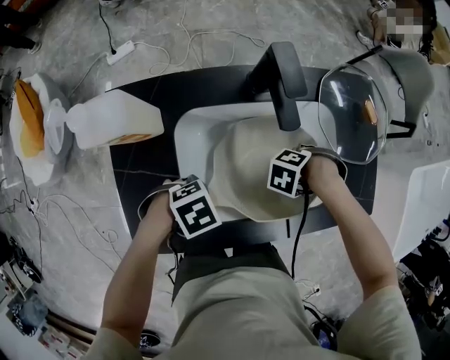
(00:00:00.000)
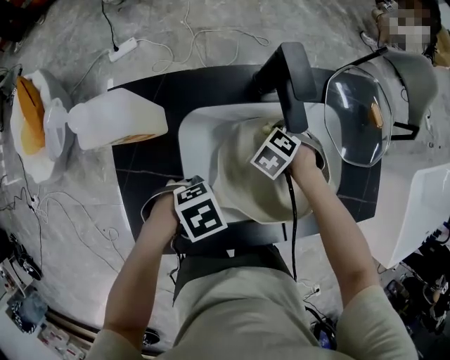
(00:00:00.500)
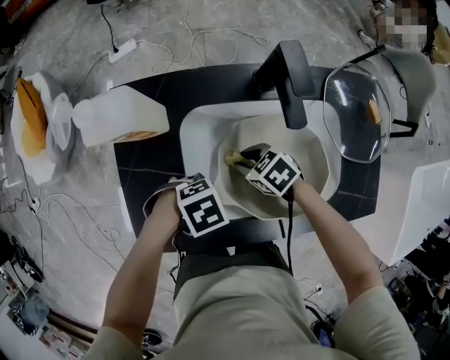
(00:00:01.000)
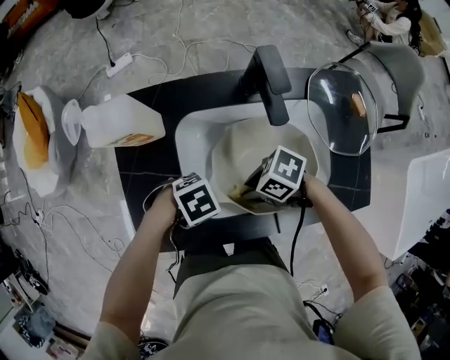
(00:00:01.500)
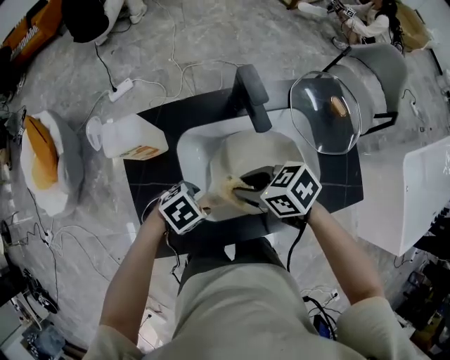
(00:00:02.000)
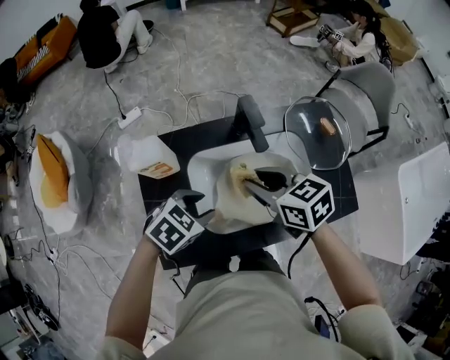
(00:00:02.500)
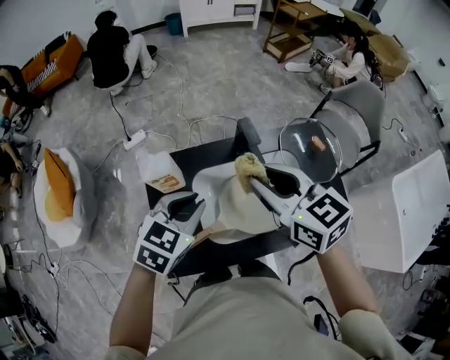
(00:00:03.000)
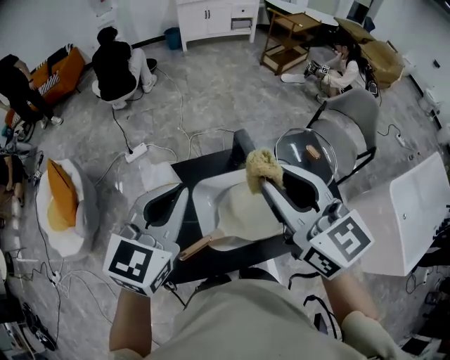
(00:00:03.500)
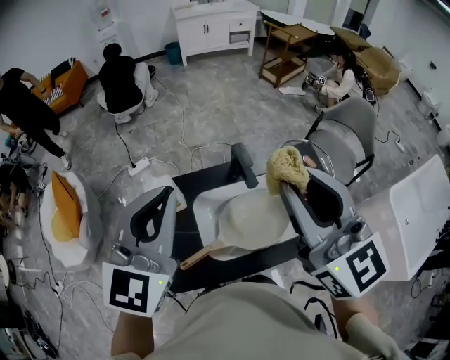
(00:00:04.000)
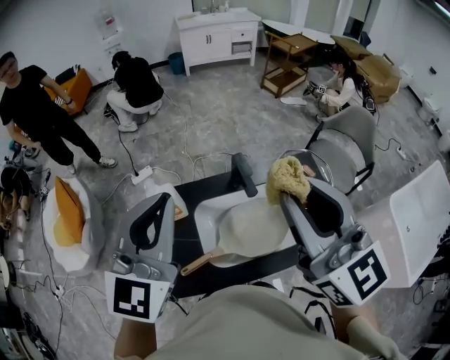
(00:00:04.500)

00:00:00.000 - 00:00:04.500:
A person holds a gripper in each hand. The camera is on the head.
00:00:00.000 - 00:00:02.000: The right gripper changes place by approximately 25 cm, and turns by about 80 degrees.
00:00:02.000 - 00:00:04.500: Both grippers move upward, some 50 cm. The left gripper tips its fingers upward by approximately 60 degrees, and closes its fingers. Meanwhile the right gripper points its fingers roughly 50 degrees further upward.

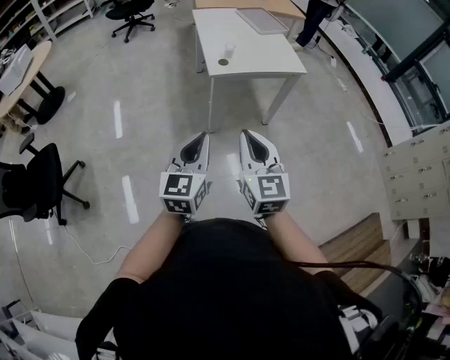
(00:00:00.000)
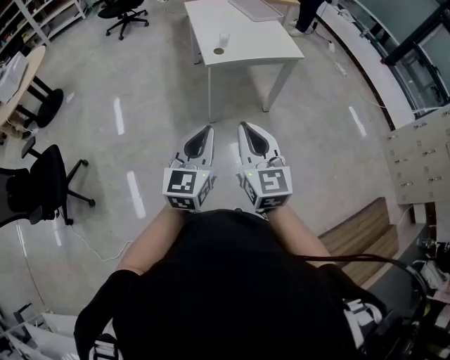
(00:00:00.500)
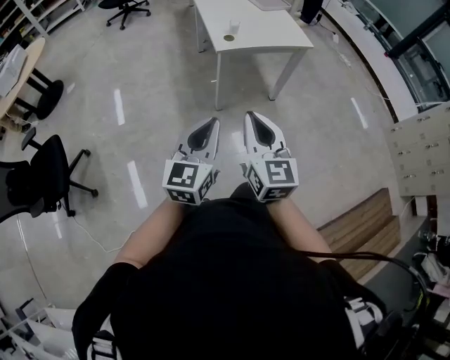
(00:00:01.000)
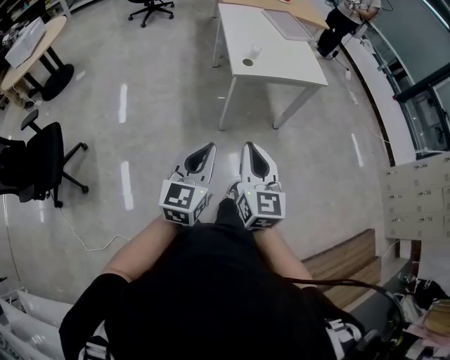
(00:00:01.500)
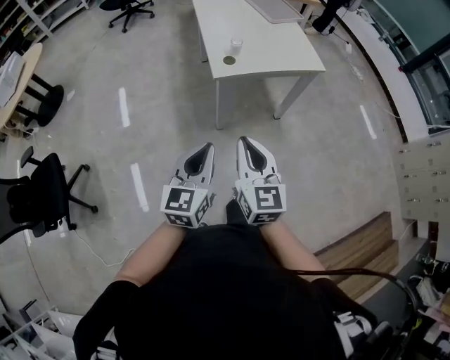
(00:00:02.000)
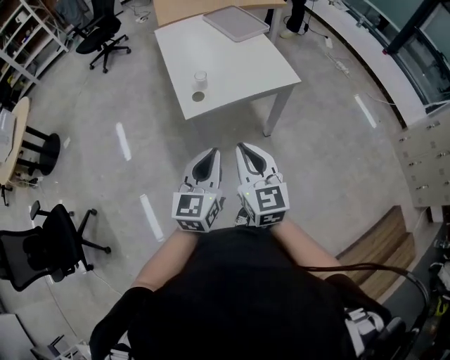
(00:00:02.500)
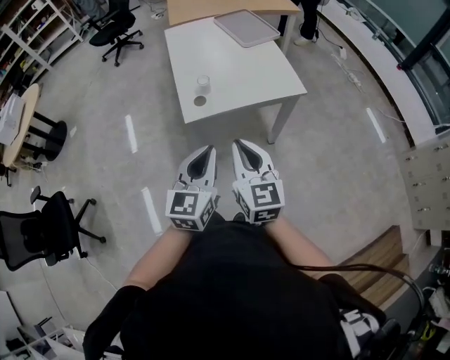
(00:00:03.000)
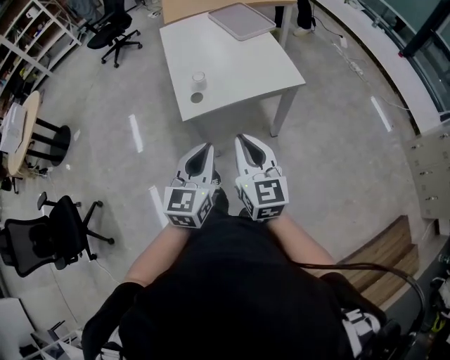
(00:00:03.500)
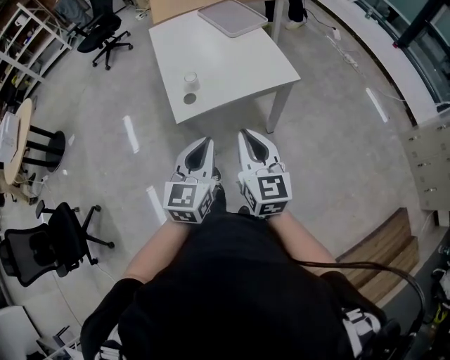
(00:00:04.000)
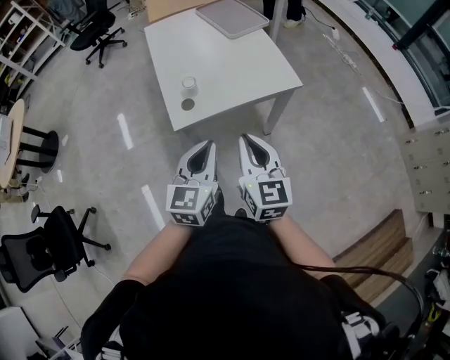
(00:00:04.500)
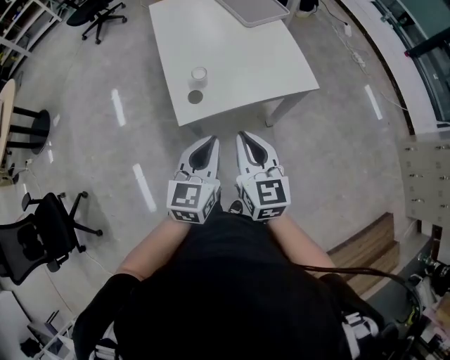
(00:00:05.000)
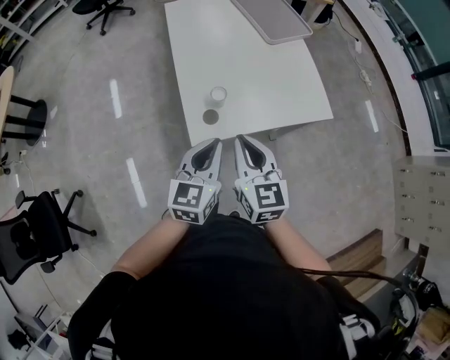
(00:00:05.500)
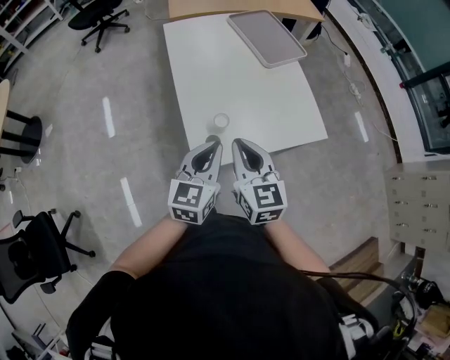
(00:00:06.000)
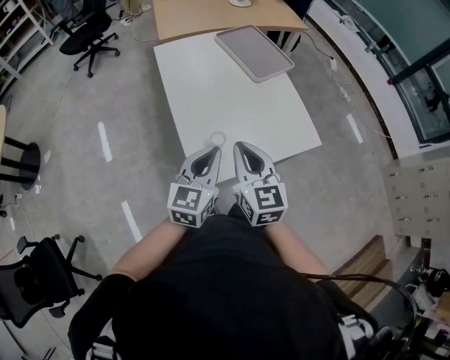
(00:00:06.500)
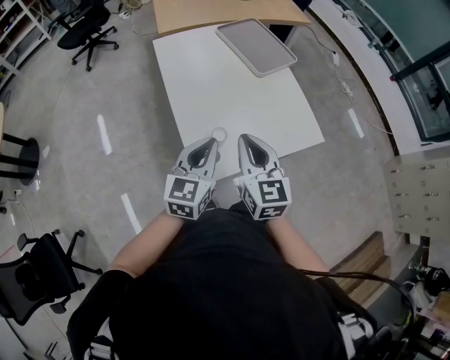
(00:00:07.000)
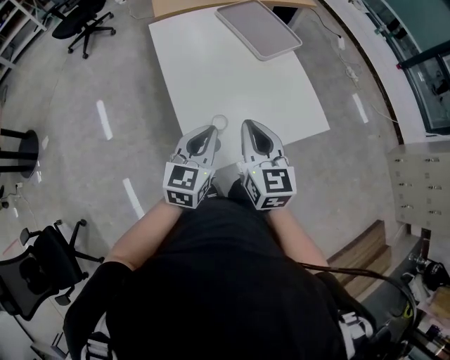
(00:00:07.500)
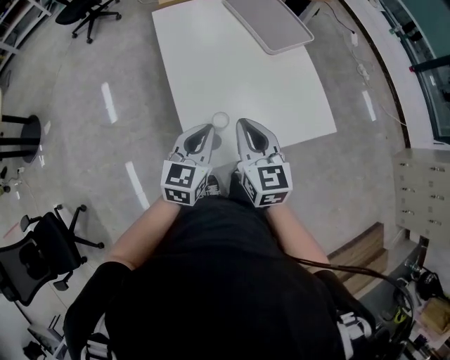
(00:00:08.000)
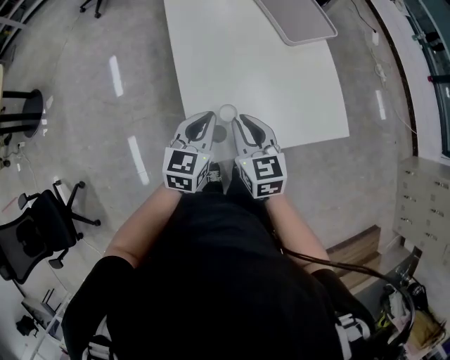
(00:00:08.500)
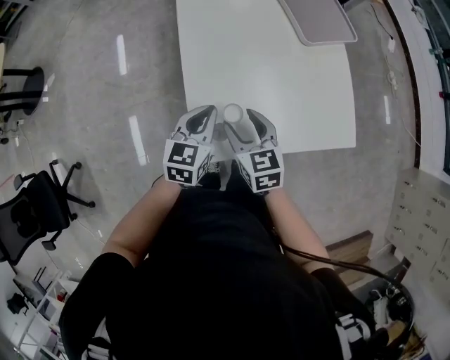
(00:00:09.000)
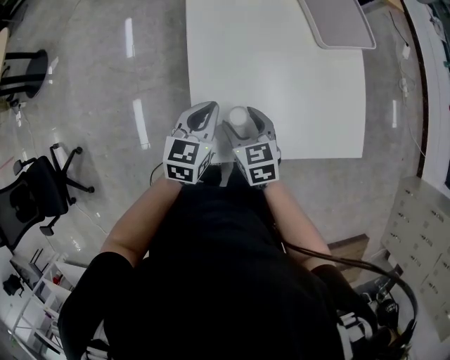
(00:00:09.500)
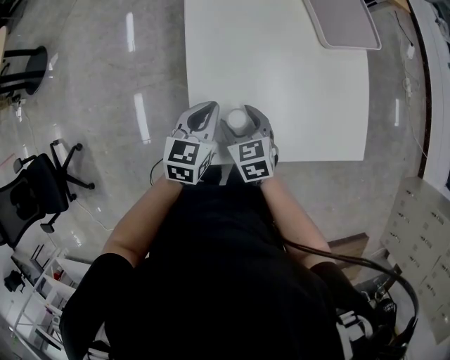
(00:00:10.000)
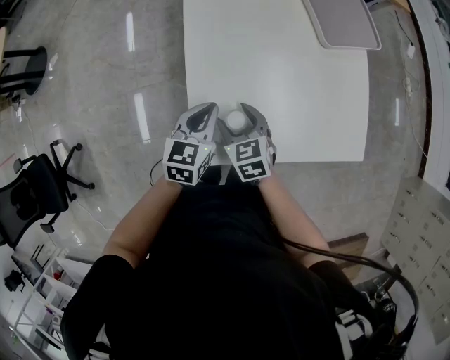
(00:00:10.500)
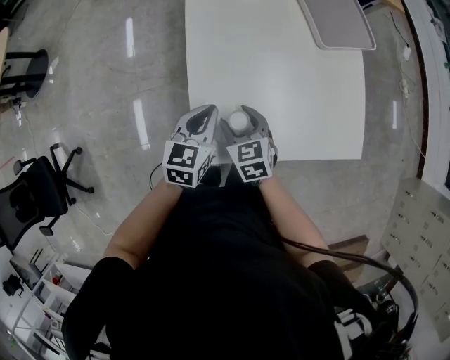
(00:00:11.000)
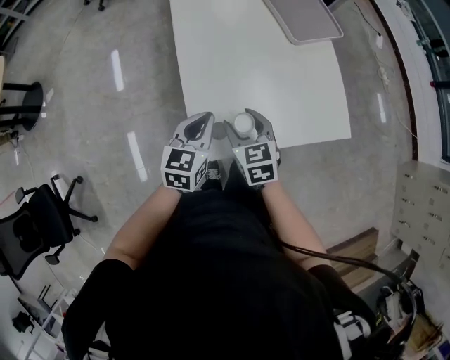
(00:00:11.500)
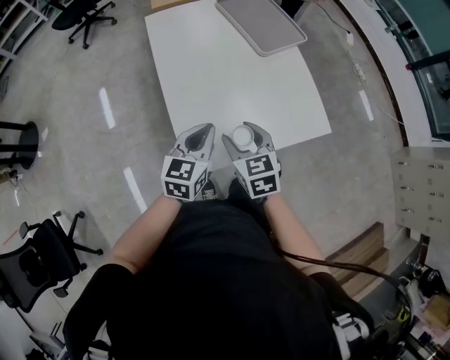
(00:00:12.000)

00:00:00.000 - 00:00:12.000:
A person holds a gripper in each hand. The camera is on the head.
00:00:00.000 - 00:00:02.000: Both grippers travel together forward, about 15 cm.
00:00:02.000 - 00:00:04.000: The grippers both shift forward and to the right by about 30 cm.
00:00:04.000 - 00:00:06.000: The grippers both shift forward and to the left by about 30 cm.
00:00:06.000 - 00:00:08.000: Both grippers travel together forward, some 10 cm.
00:00:08.000 - 00:00:10.000: The left gripper is displaced downward and forward by roughly 15 cm; the right gripper heads downward, covering approximately 25 cm, changes its angle by roughly 40 degrees, and opens.
00:00:10.000 - 00:00:12.000: The two grippers go about 15 cm upward and backward.

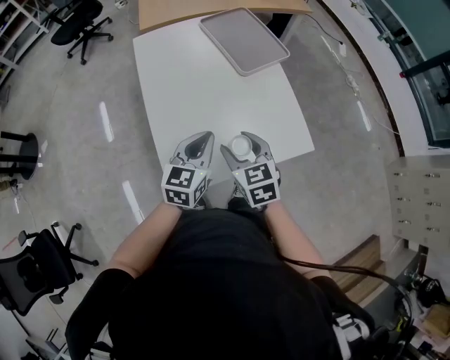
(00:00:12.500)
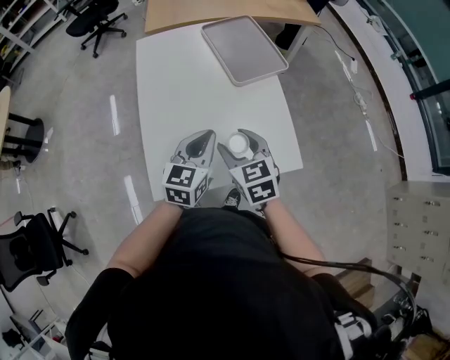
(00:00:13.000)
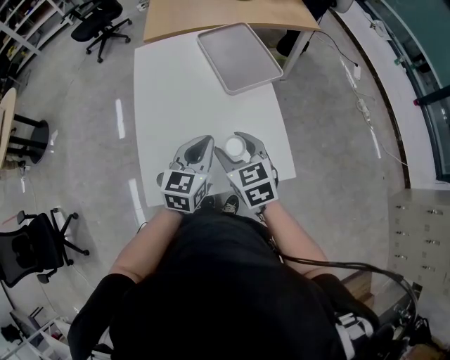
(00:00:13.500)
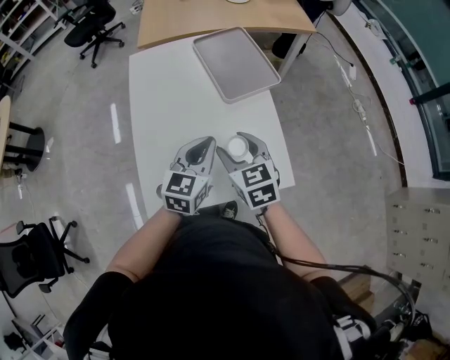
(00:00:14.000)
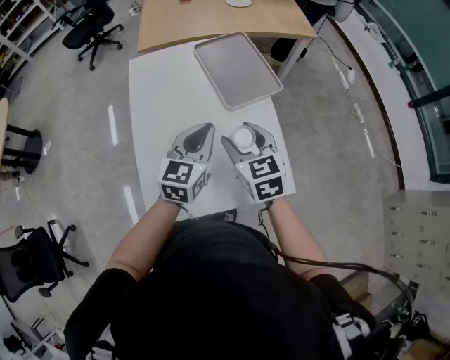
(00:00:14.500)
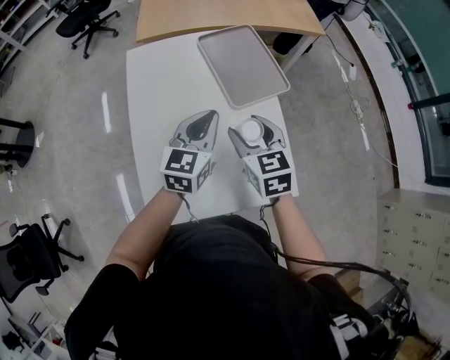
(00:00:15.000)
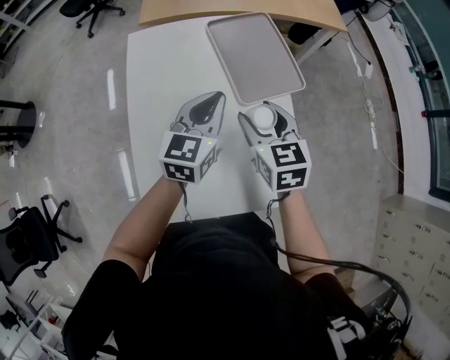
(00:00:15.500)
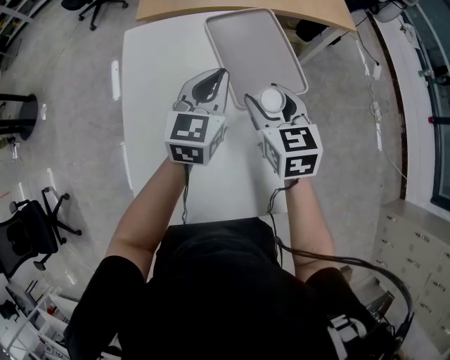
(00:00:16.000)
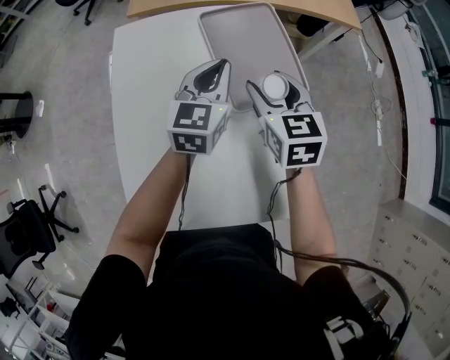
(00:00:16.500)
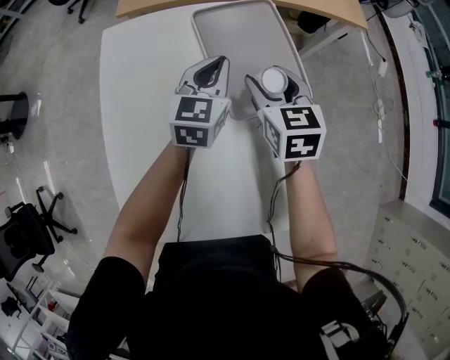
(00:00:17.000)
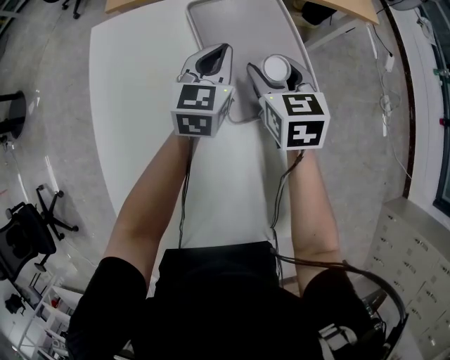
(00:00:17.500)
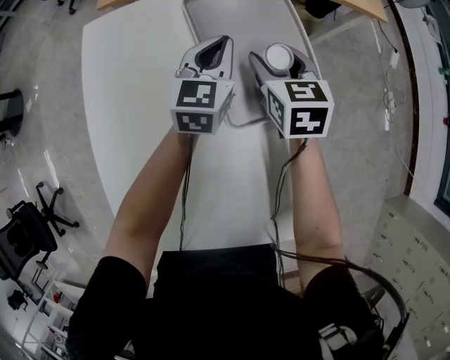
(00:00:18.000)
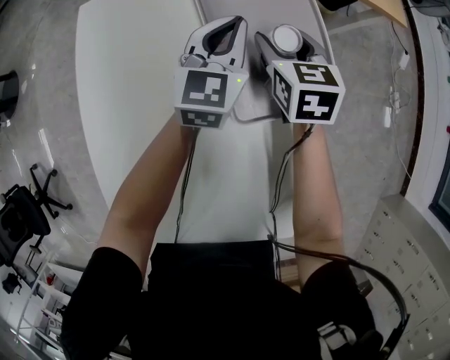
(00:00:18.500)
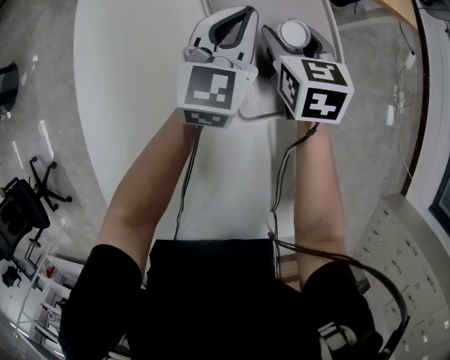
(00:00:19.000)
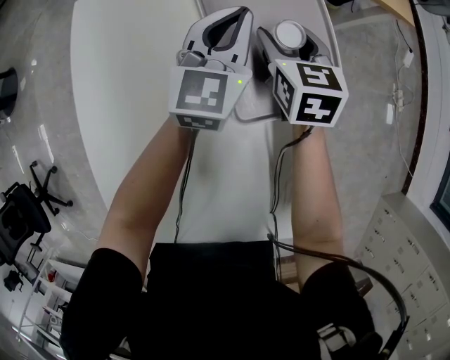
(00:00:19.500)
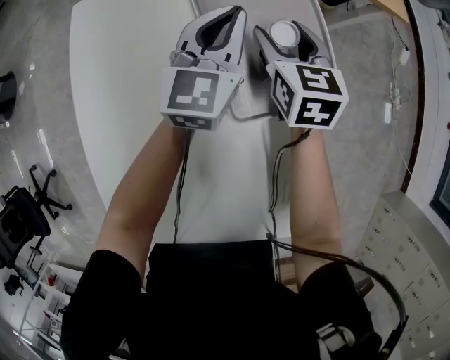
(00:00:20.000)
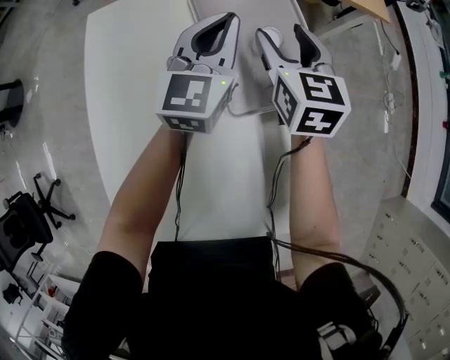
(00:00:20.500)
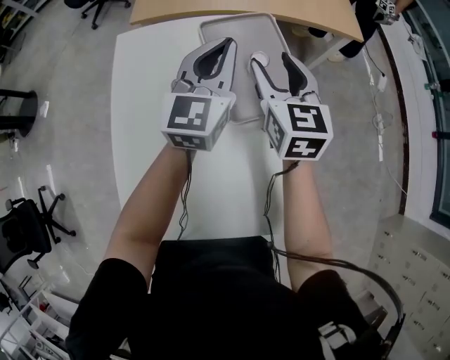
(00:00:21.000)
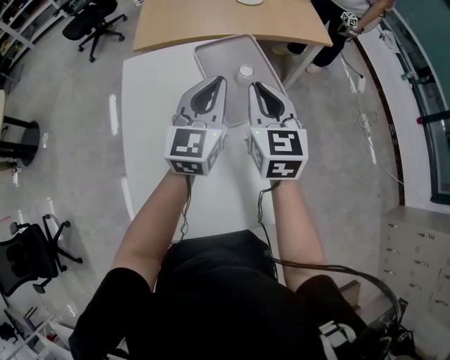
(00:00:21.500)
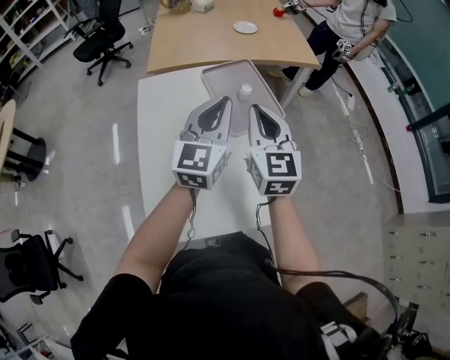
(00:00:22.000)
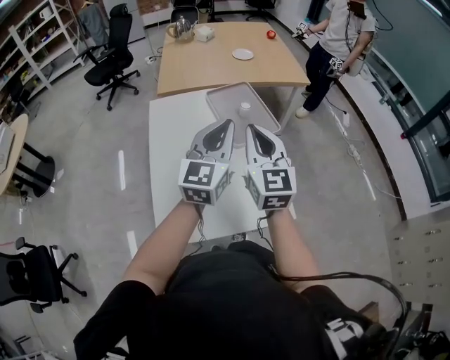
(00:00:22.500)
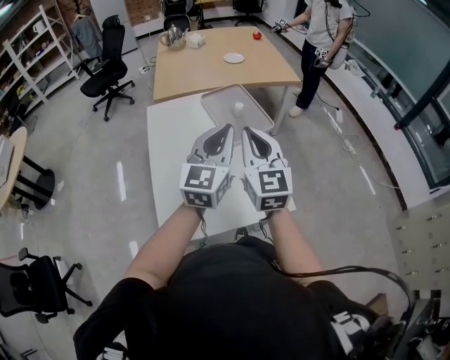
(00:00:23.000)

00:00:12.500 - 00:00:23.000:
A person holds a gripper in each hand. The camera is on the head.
00:00:12.500 - 00:00:14.500: The grippers both shift forward, to the right and upward by about 20 cm.
00:00:14.500 - 00:00:16.500: Both grippers travel together forward, roughly 25 cm.
00:00:16.500 - 00:00:19.000: The right gripper heads downward and forward, covering roughly 25 cm, while the left gripper moves forward and downward, about 20 cm.
00:00:19.000 - 00:00:21.000: The two grippers go some 25 cm upward and backward. The right gripper rotates some 20 degrees.
00:00:21.000 - 00:00:23.000: Both grippers move backward and upward, about 40 cm. The right gripper changes its angle by some 20 degrees, and closes.
